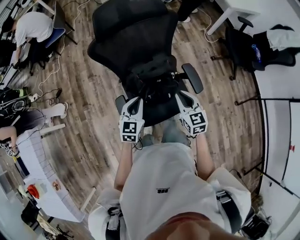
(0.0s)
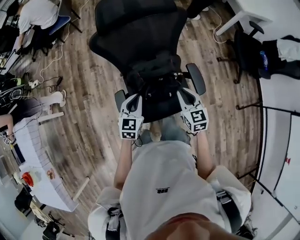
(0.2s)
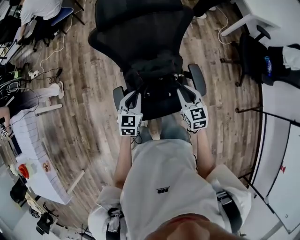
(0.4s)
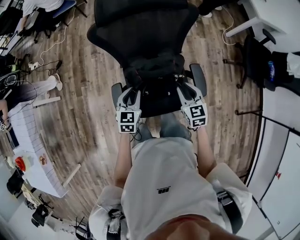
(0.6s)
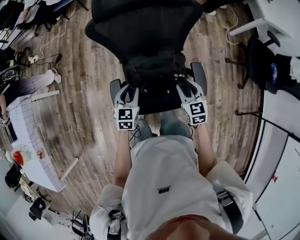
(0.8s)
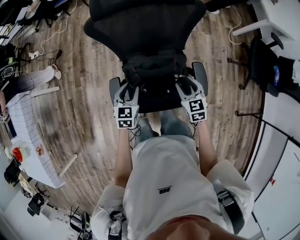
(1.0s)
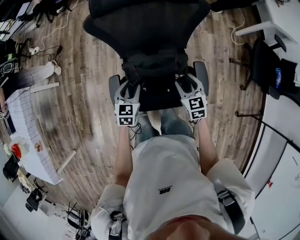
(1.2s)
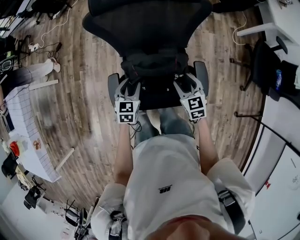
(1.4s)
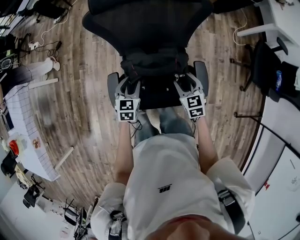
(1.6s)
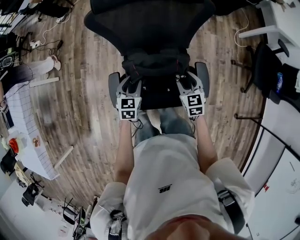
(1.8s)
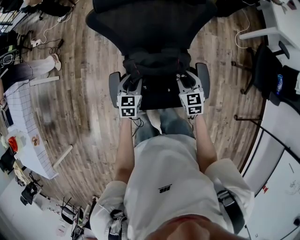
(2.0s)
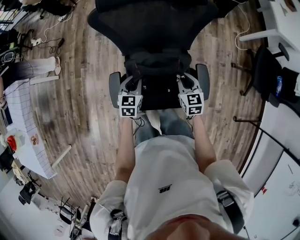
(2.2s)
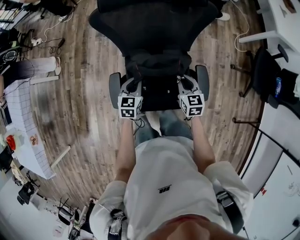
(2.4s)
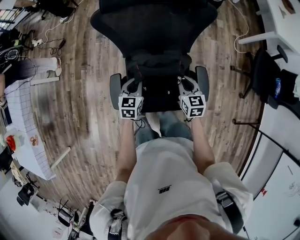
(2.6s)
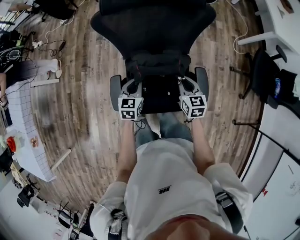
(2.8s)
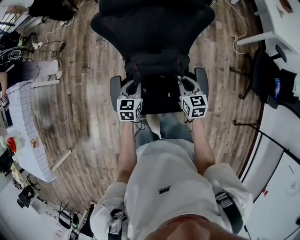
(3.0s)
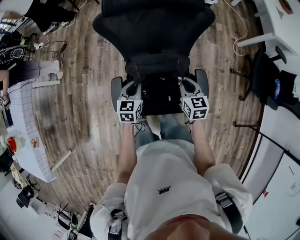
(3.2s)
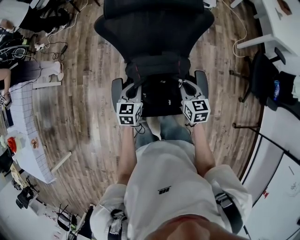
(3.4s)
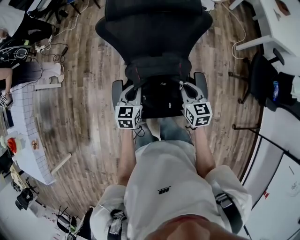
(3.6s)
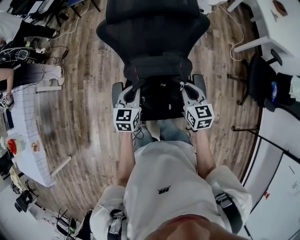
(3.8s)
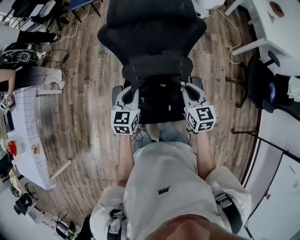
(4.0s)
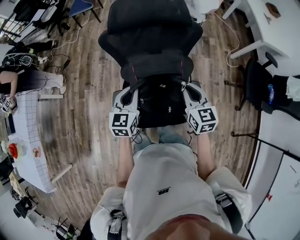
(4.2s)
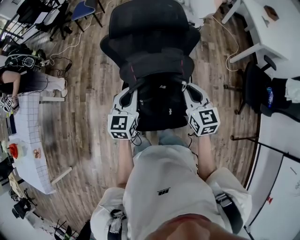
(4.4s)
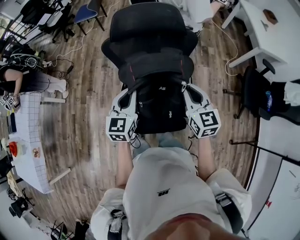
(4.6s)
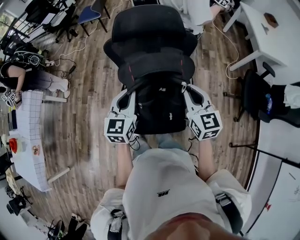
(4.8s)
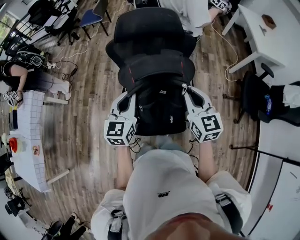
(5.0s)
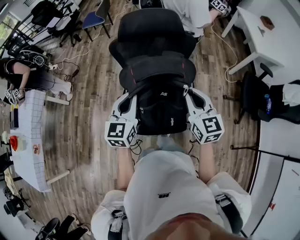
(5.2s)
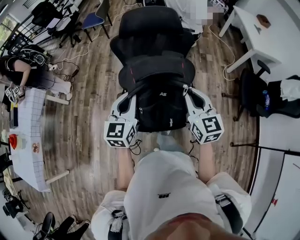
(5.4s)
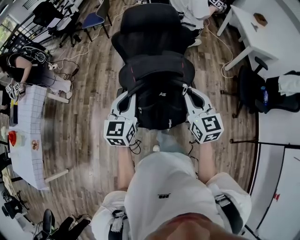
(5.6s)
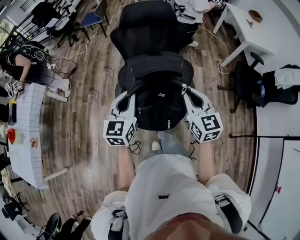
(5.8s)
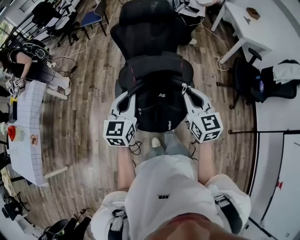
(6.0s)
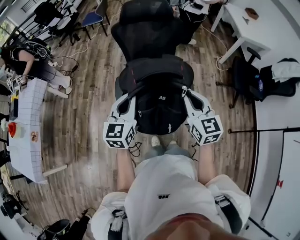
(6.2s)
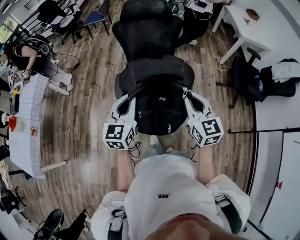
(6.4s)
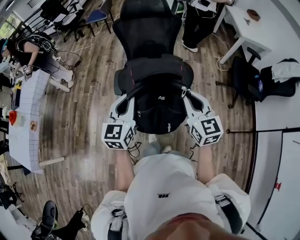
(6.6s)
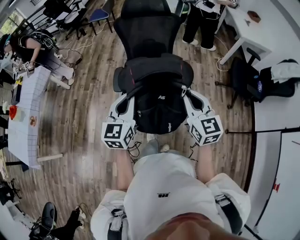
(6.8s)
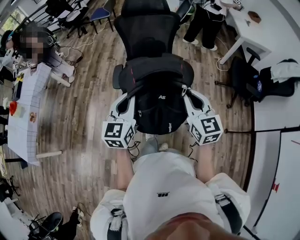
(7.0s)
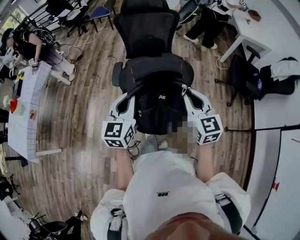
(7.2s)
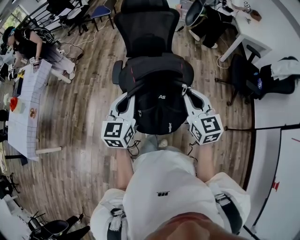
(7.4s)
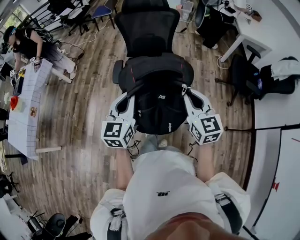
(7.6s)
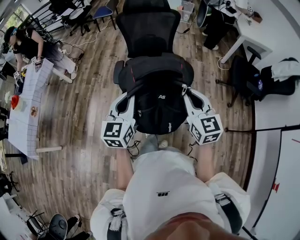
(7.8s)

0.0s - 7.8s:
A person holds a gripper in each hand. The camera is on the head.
0.0s - 1.6s: The grippers both shift downward and forward by some 15 cm. The right gripper rotates approximately 30 degrees, and opens its fingers. Meanwhile the left gripper changes its angle by about 30 degrees, and opens up.
1.6s - 3.2s: The right gripper closes up; the left gripper closes up.
3.2s - 4.6s: Both grippers move upward, about 25 cm.
4.6s - 6.2s: Both grippers move backward, about 35 cm.
6.2s - 7.8s: The left gripper is displaced backward by approximately 20 cm. Meanwhile the right gripper goes roughly 15 cm backward and to the right.

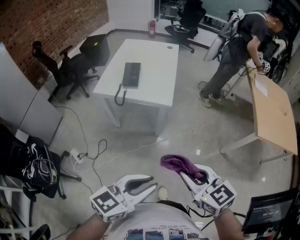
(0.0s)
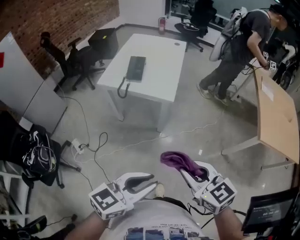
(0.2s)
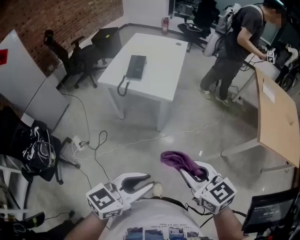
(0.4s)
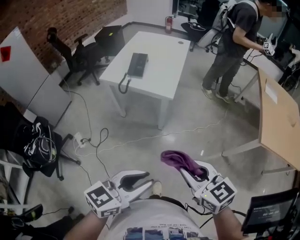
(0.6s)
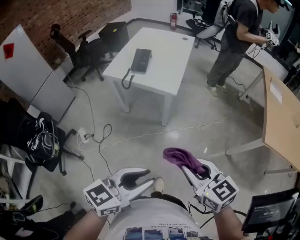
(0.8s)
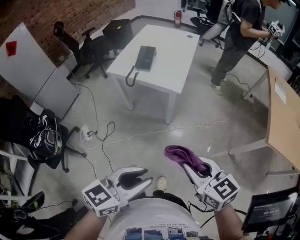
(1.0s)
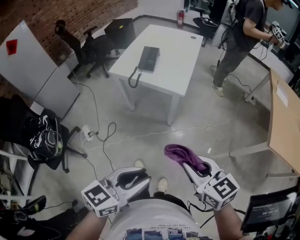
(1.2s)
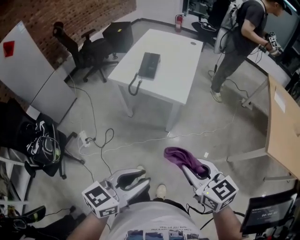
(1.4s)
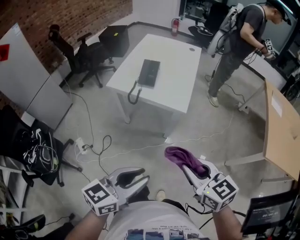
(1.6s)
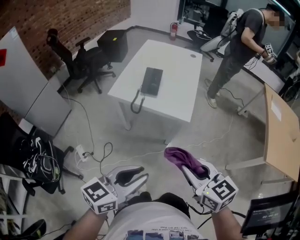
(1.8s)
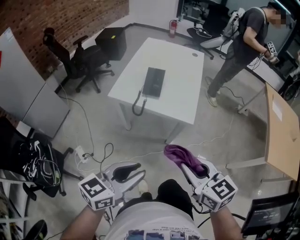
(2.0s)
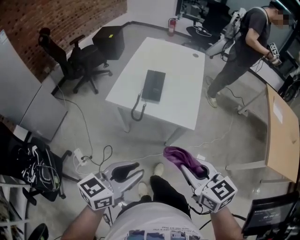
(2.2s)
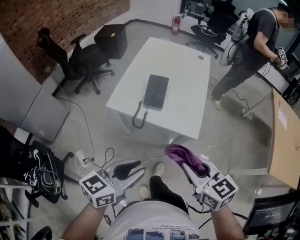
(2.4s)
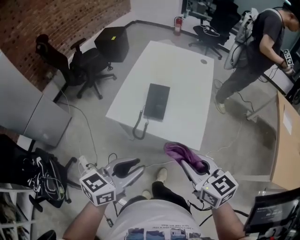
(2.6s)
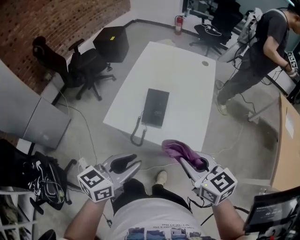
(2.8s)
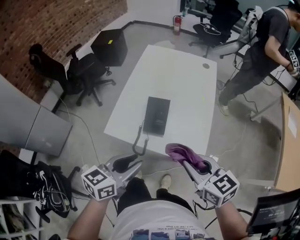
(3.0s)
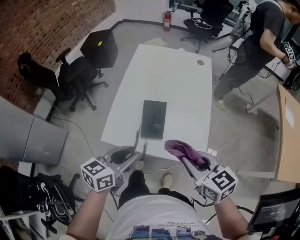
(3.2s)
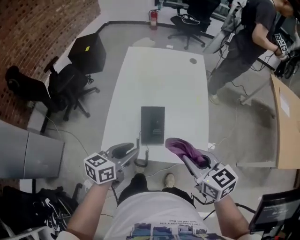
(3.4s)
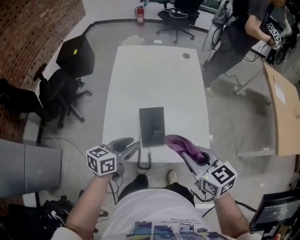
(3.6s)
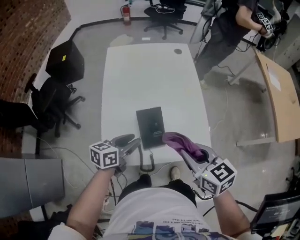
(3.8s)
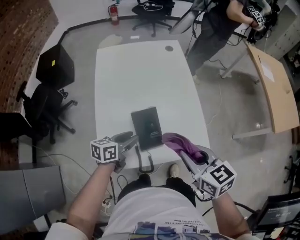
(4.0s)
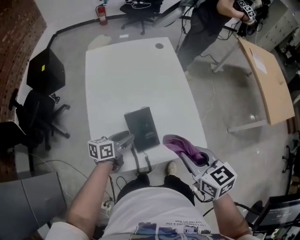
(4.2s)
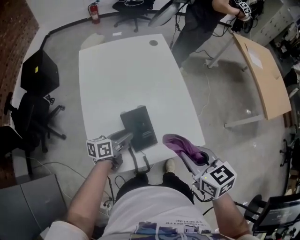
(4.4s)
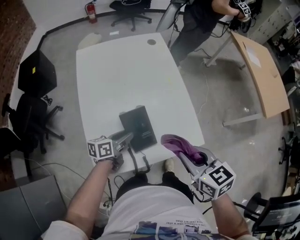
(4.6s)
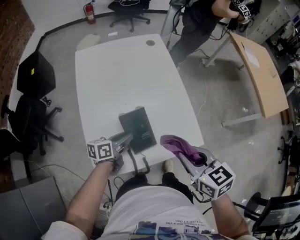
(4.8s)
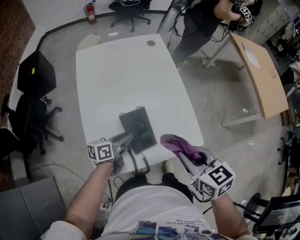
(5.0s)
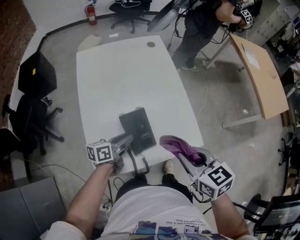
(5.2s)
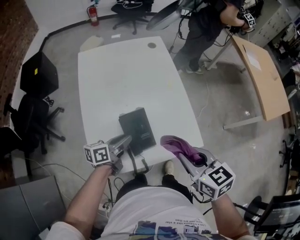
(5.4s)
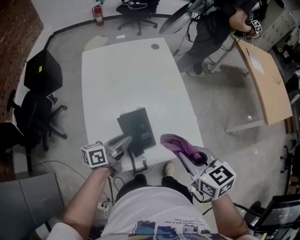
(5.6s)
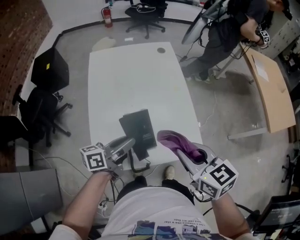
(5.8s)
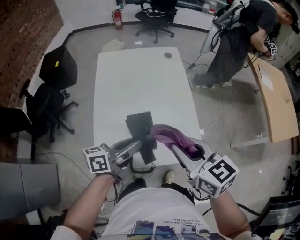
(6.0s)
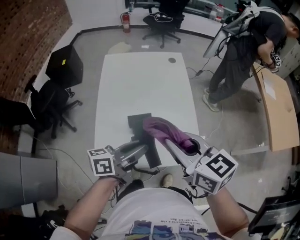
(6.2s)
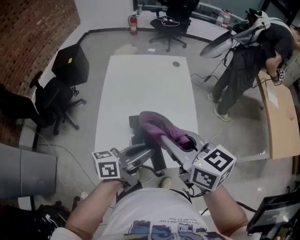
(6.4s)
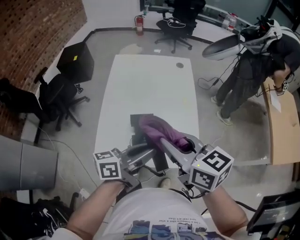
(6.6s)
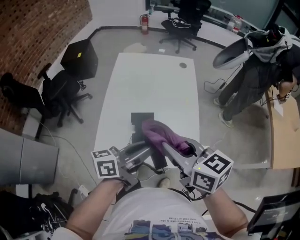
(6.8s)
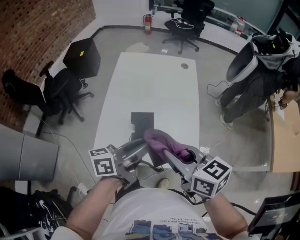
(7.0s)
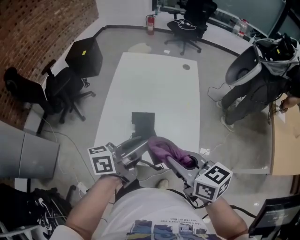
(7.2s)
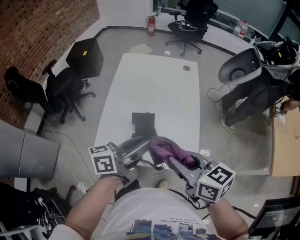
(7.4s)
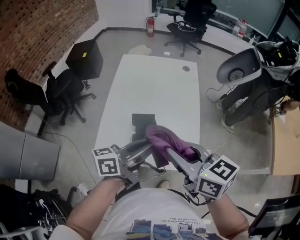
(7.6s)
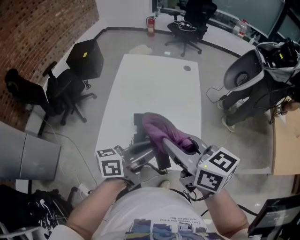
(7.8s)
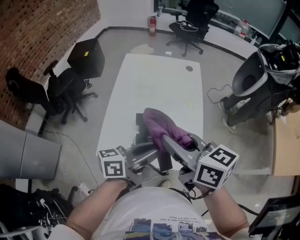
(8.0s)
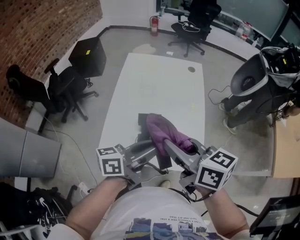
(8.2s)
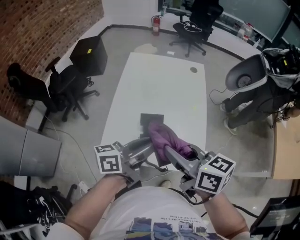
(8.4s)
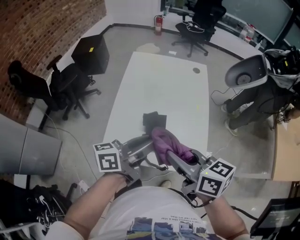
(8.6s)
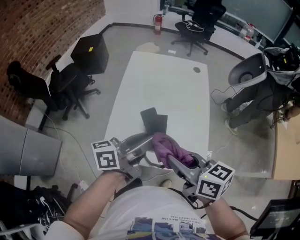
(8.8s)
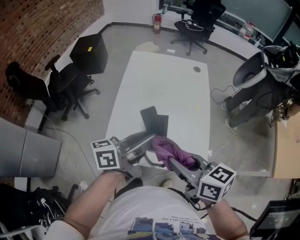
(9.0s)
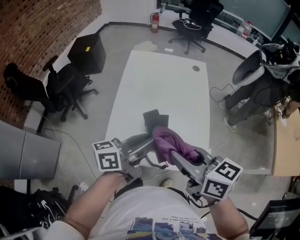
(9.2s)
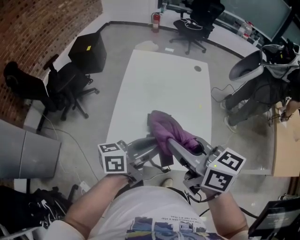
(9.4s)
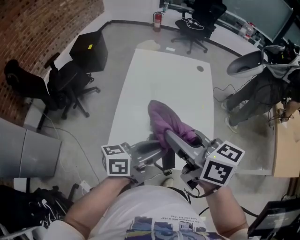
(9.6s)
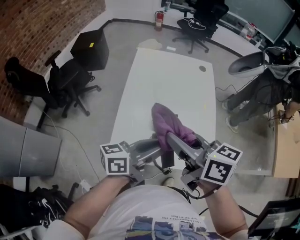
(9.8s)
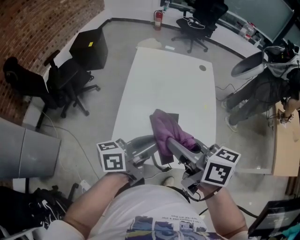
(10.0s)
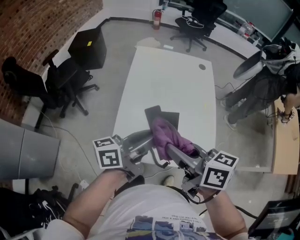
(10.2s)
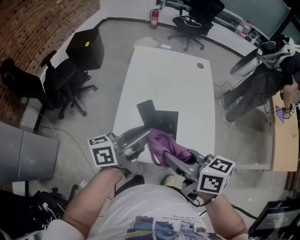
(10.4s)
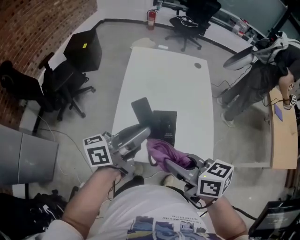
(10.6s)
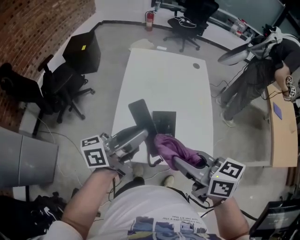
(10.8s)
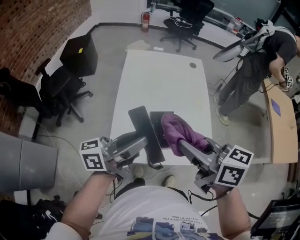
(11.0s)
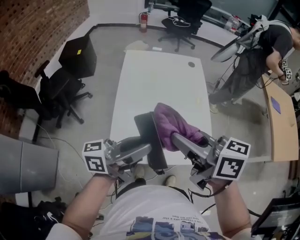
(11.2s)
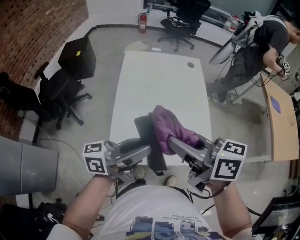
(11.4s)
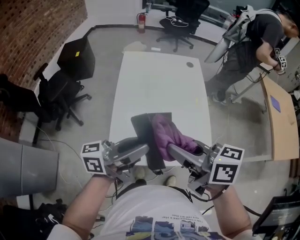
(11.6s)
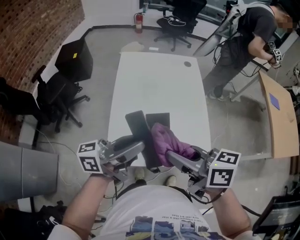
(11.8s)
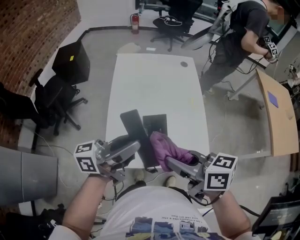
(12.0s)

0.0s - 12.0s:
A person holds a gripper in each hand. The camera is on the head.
0.0s - 1.6s: The left gripper heads forward and to the left, covering about 10 cm, while the right gripper travels forward by about 10 cm.
1.6s - 3.0s: Both grippers move forward, some 30 cm.
3.0s - 4.4s: The right gripper moves approximately 5 cm, and turns by some 40 degrees. The left gripper ends up approximately 30 cm from where it was, and rotates some 40 degrees.
4.4s - 6.0s: The right gripper heads upward, covering roughly 10 cm, while the left gripper shifts approximately 15 cm upward.
6.0s - 7.6s: The left gripper is displaced to the right and upward by roughly 10 cm. Meanwhile the right gripper changes its angle by roughly 20 degrees.
7.6s - 9.0s: The right gripper changes place by about 5 cm. The left gripper travels to the left by approximately 5 cm.
9.0s - 10.4s: The two grippers go some 5 cm to the left.
10.4s - 12.0s: The right gripper moves roughly 5 cm upward and comes back.

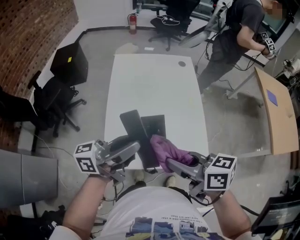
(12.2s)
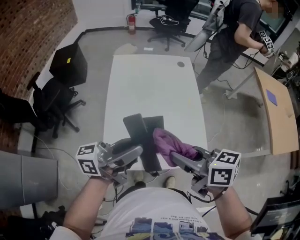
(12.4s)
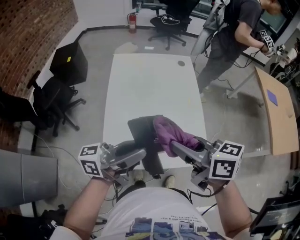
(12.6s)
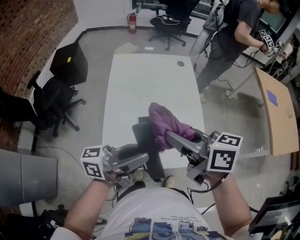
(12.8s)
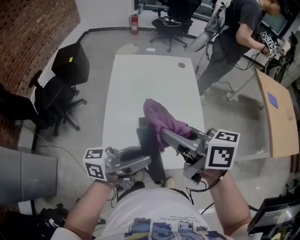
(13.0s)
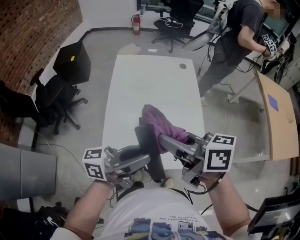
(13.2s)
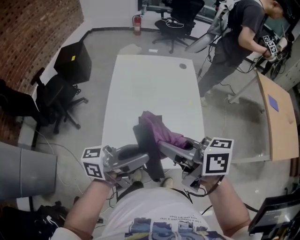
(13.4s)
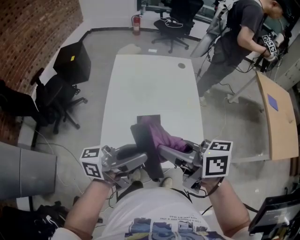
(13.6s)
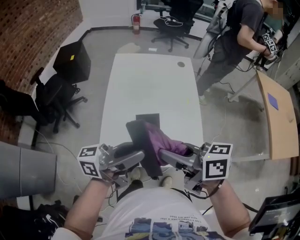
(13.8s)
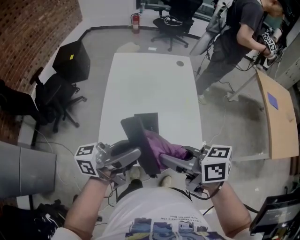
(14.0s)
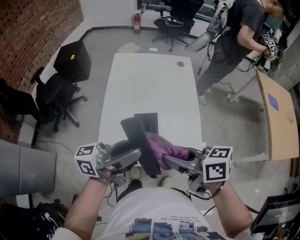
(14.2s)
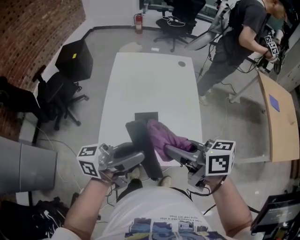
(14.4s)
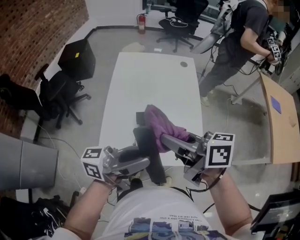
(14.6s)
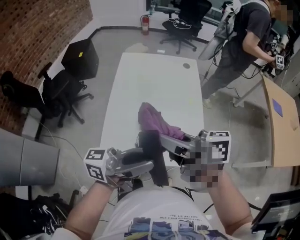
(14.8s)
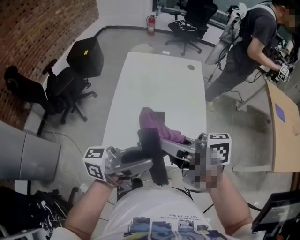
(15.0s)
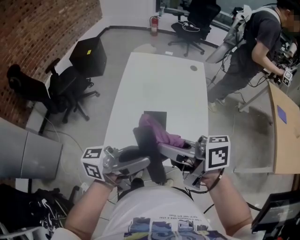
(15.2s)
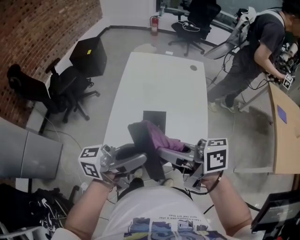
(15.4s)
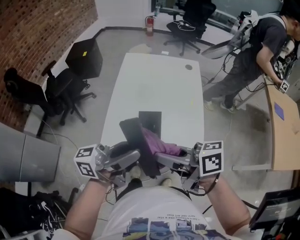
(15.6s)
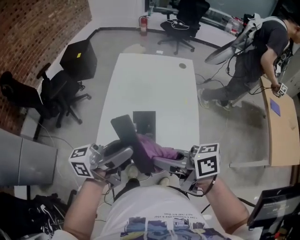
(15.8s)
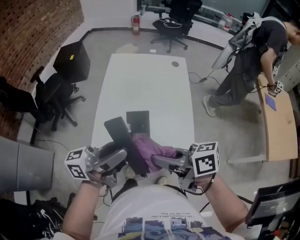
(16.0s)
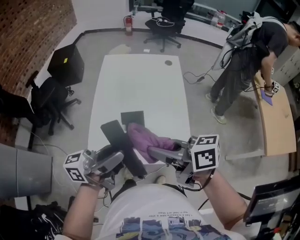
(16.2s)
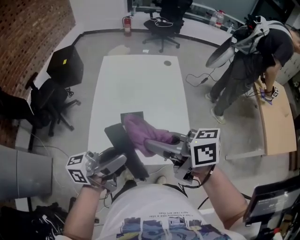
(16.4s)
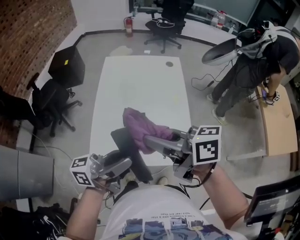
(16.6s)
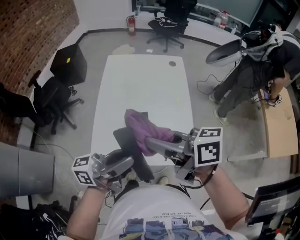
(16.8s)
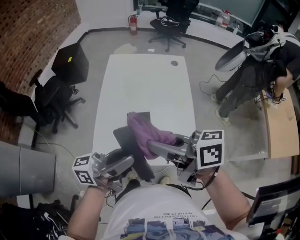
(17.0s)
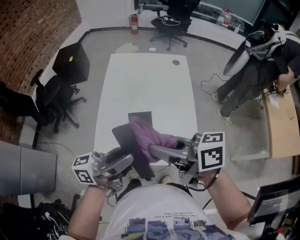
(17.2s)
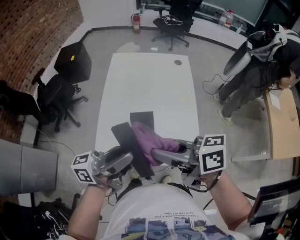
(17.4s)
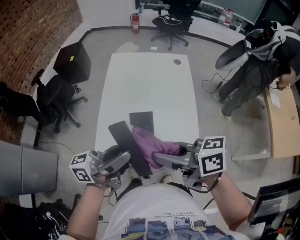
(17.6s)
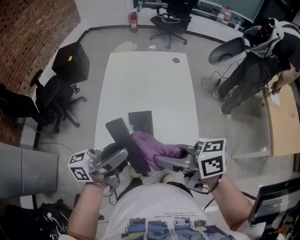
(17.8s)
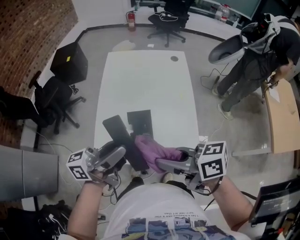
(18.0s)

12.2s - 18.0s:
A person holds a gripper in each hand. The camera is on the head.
12.2s - 13.6s: The left gripper shifts by approximately 5 cm.
13.6s - 15.0s: The grippers stay close to where they were, moving slightly.
16.6s - 18.0s: The right gripper ends up about 10 cm from where it was.
